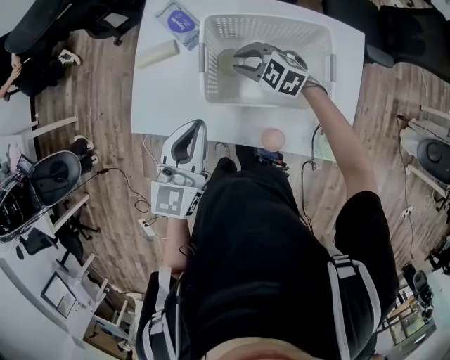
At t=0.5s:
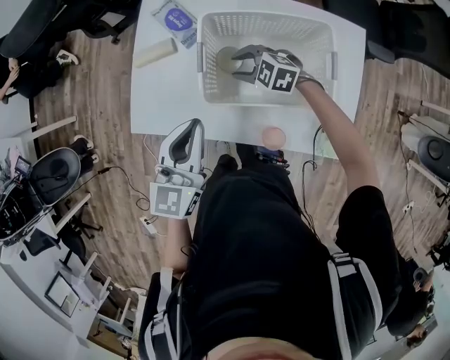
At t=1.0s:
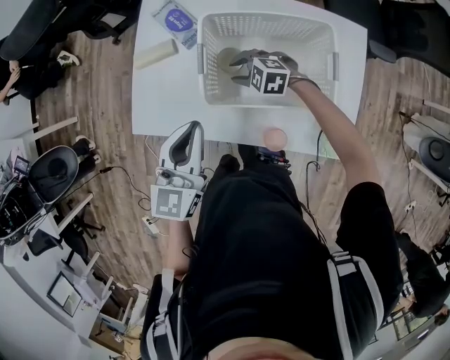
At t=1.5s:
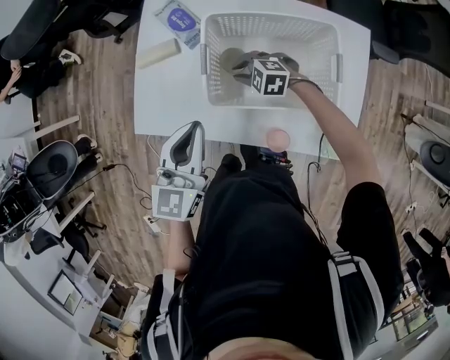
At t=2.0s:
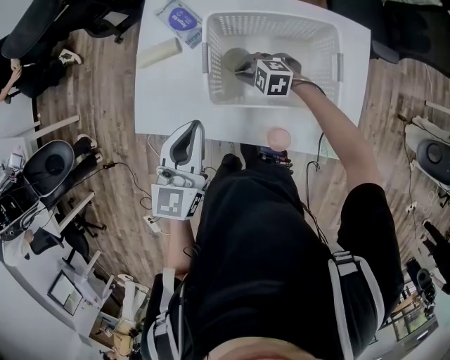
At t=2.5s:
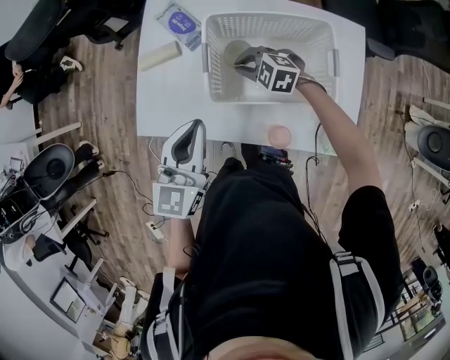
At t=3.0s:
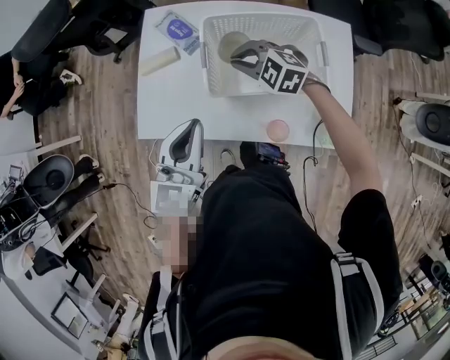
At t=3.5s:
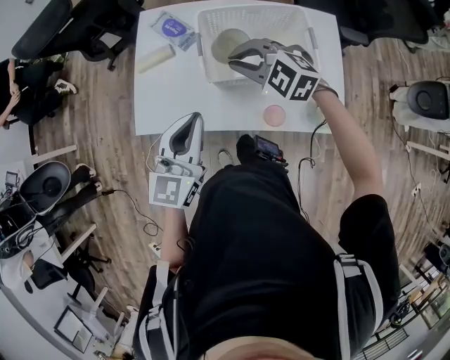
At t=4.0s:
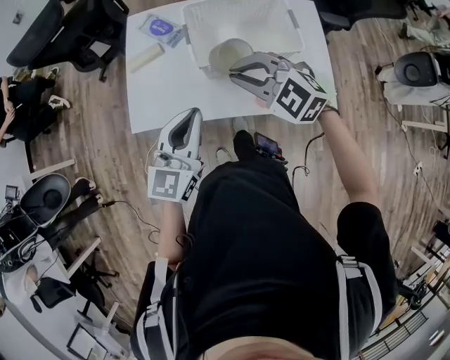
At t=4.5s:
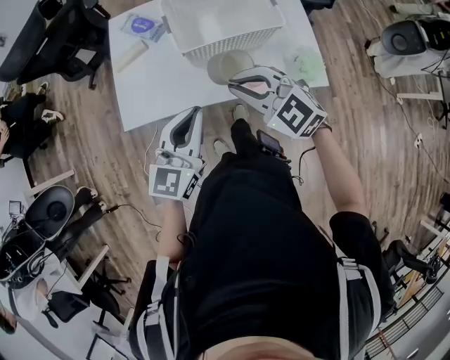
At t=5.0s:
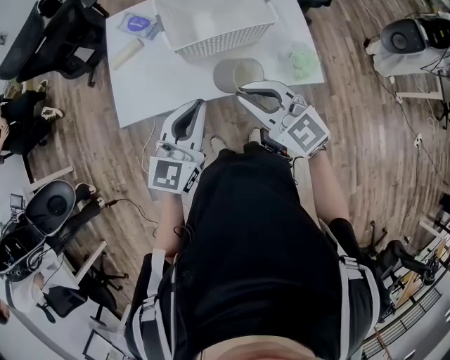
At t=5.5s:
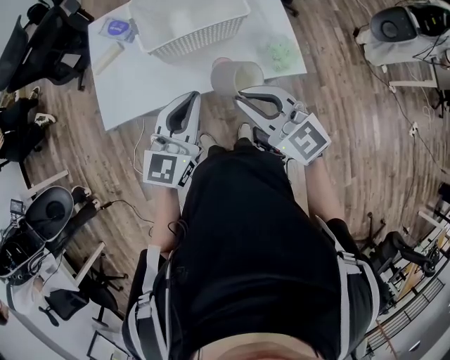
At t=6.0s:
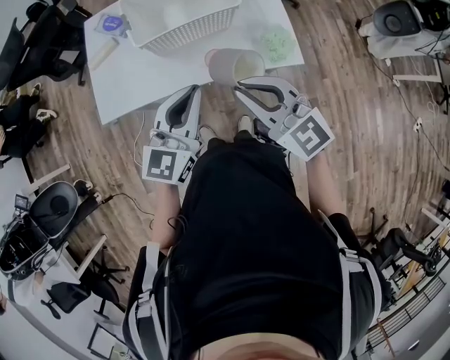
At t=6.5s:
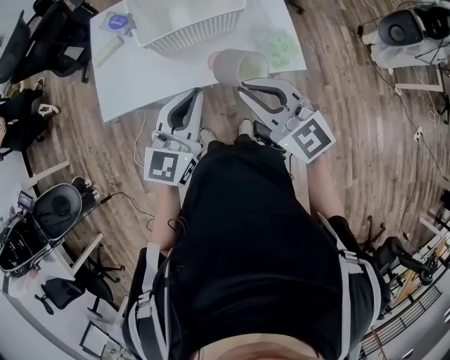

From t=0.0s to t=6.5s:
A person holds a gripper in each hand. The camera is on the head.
From t=0.0s to t=2.0s: The right gripper is displaced downward by roughly 10 cm.
From t=2.0s to t=4.5s: The right gripper shifts by roughly 35 cm, and turns by some 40 degrees. The left gripper shifts by some 20 cm, and turns by about 30 degrees.
From t=4.5s to t=6.5s: The right gripper shifts some 15 cm to the right and backward, and swivels roughly 30 degrees. The left gripper shifts roughly 15 cm to the right.

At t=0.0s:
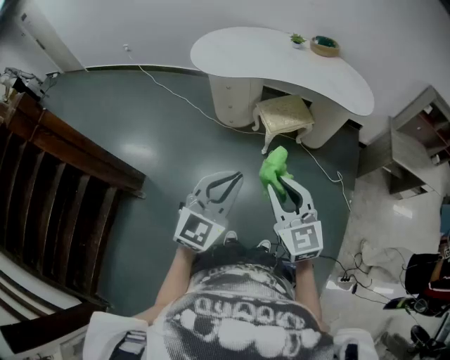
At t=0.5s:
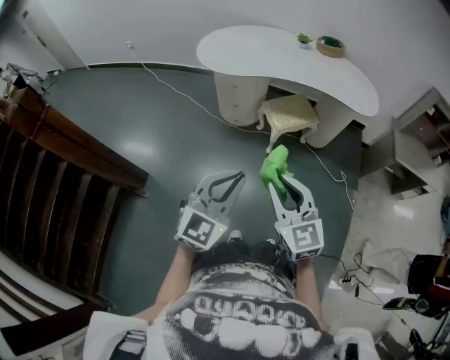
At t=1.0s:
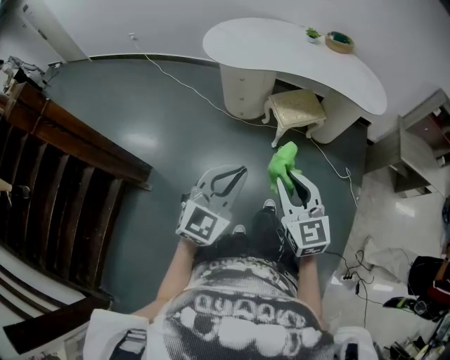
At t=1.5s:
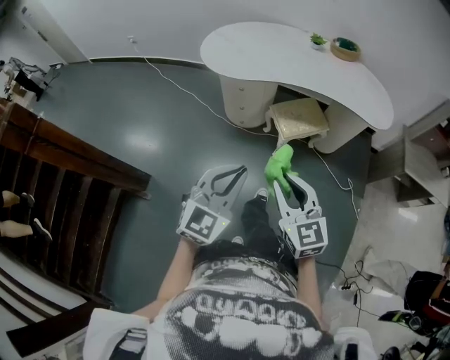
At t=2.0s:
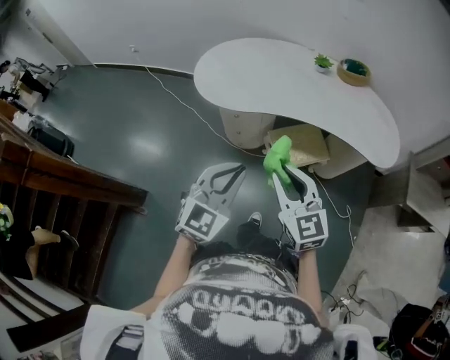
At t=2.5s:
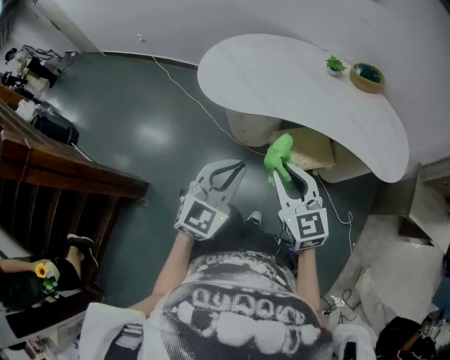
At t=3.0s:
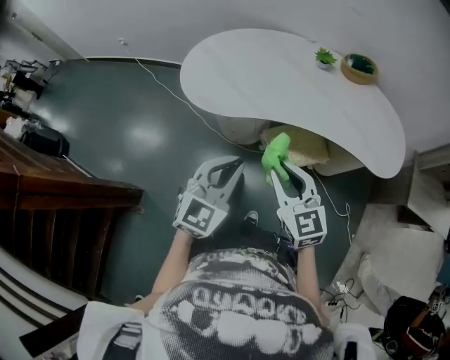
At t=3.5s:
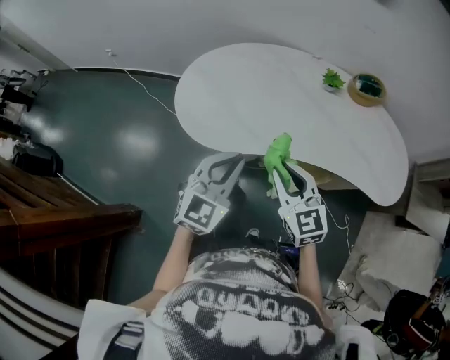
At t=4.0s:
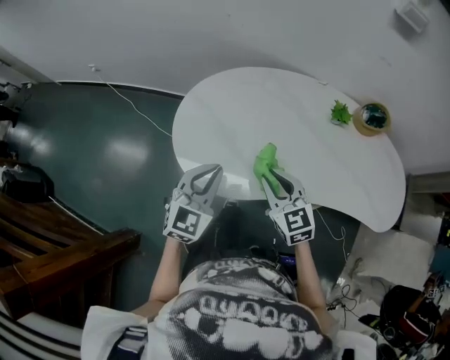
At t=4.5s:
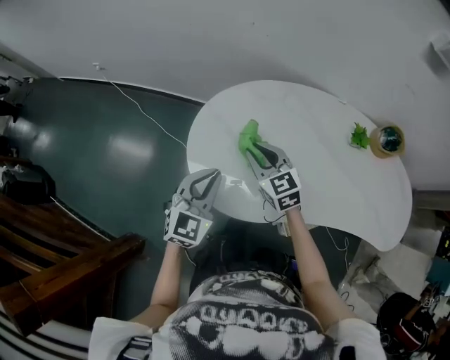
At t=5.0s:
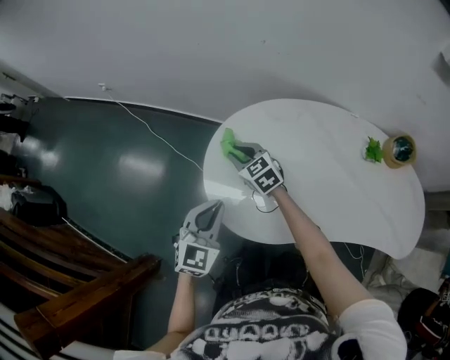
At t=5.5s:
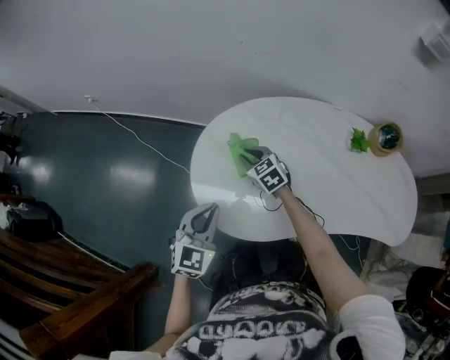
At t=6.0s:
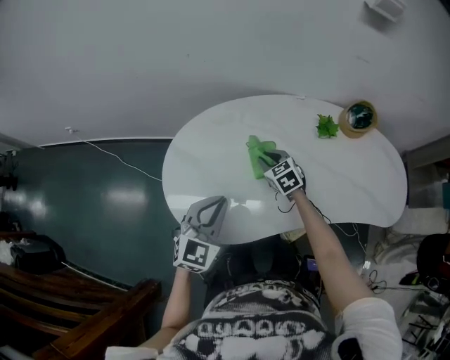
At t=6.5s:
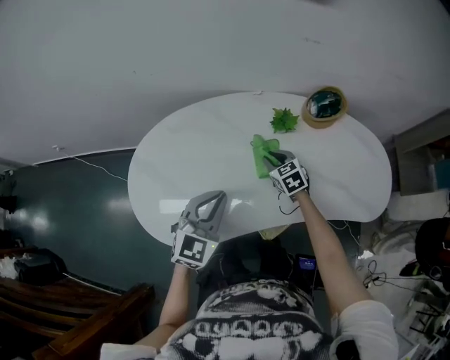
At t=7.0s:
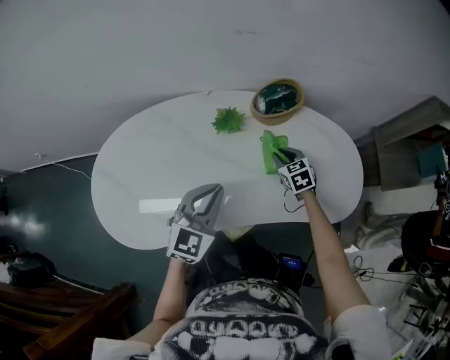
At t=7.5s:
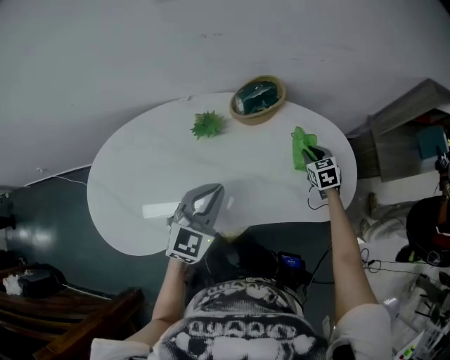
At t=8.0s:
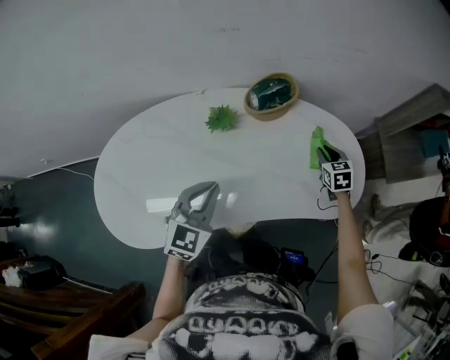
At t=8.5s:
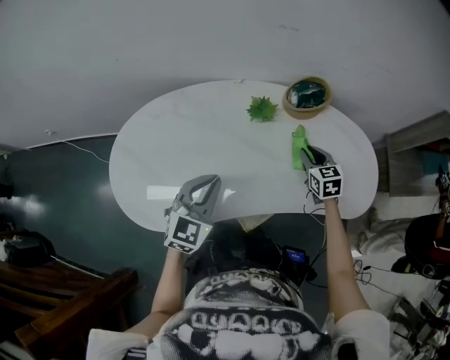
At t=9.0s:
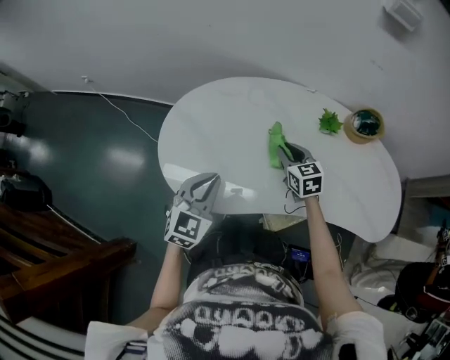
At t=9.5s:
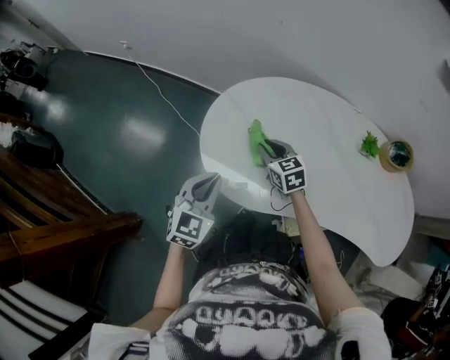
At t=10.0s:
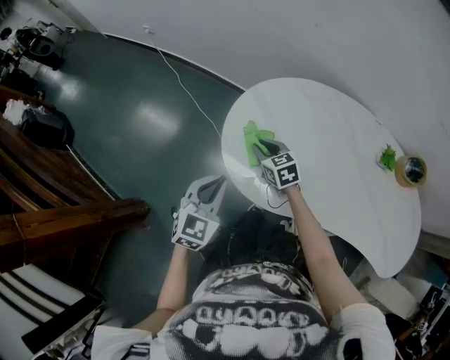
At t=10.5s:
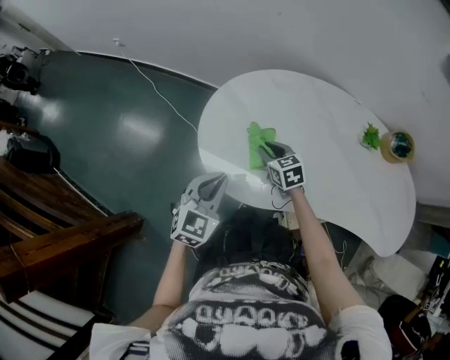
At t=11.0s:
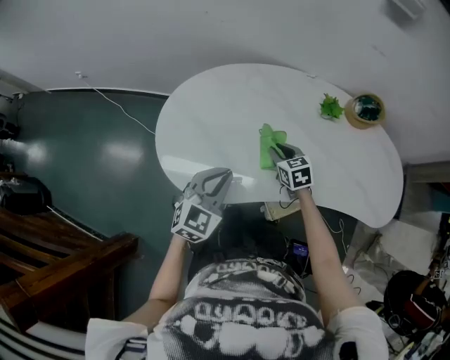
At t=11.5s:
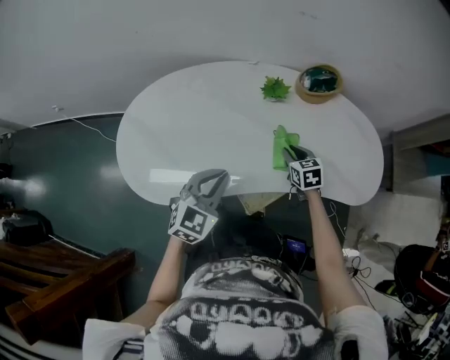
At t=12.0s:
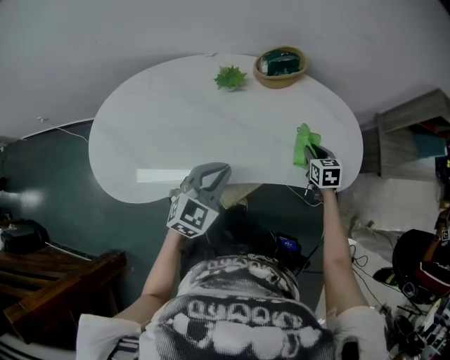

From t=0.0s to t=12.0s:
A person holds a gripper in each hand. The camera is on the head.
From t=0.0s to t=2.0s: Both grippers travel together forward, about 30 cm.
From t=2.0s to t=4.0s: The two grippers travel together, forward, some 40 cm.
From t=4.0s to t=6.0s: The right gripper shifts approximately 25 cm forward and downward, travels to the left and back again, approximately 25 cm each way, and swivels approximately 20 degrees. Meanwhile the left gripper travels forward by approximately 10 cm, and moves about 10 cm to the left and comes back.
From t=6.0s to t=8.0s: The right gripper moves to the right, roughly 60 cm, and changes its angle by some 30 degrees. Meanwhile the left gripper shifts some 35 cm to the right.
From t=8.0s to t=10.0s: The pair of grippers is taken approximately 70 cm. The left gripper swivels about 40 degrees, while the right gripper swivels some 60 degrees.
From t=10.0s to t=12.0s: Both grippers are carried approximately 60 cm. The left gripper swivels some 40 degrees, while the right gripper rotates approximately 50 degrees.

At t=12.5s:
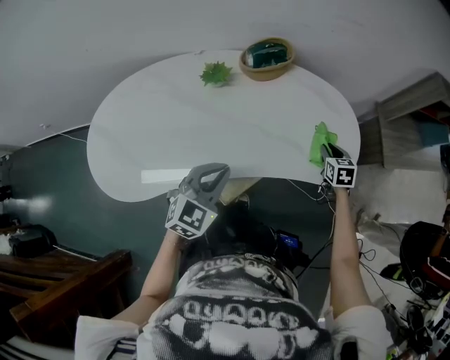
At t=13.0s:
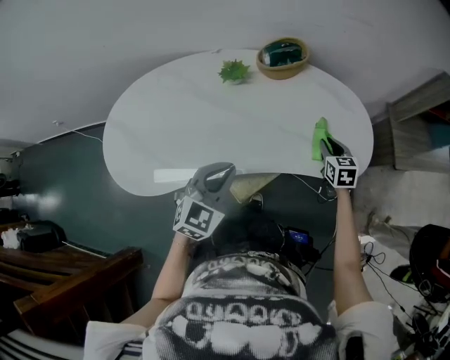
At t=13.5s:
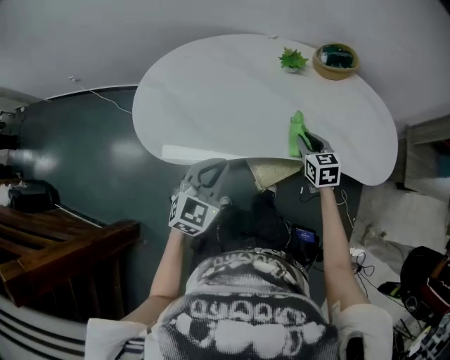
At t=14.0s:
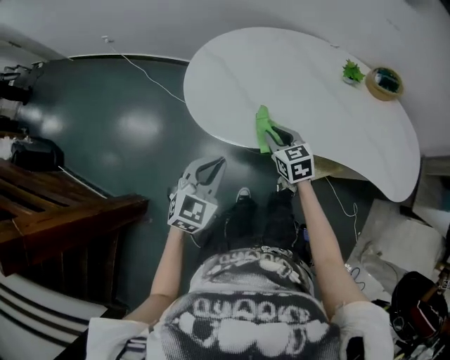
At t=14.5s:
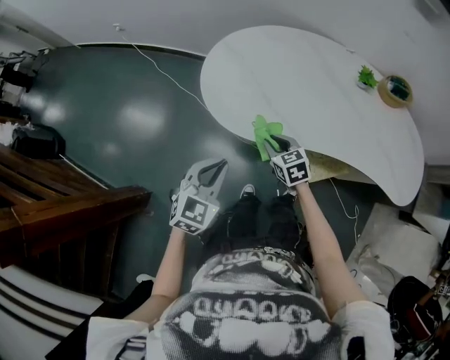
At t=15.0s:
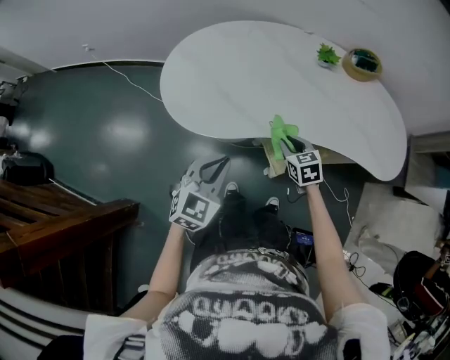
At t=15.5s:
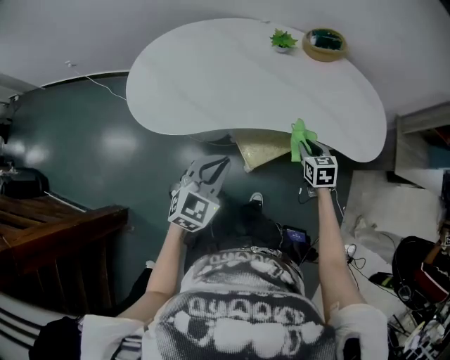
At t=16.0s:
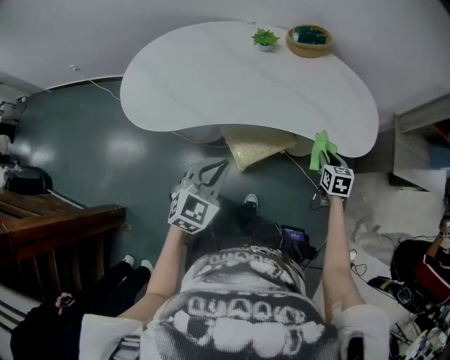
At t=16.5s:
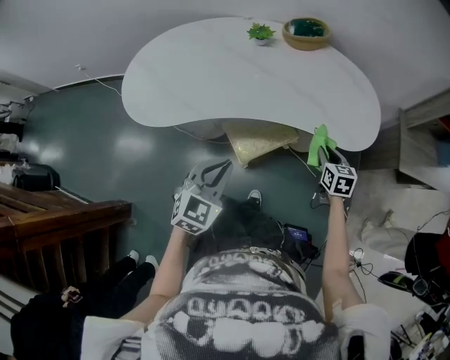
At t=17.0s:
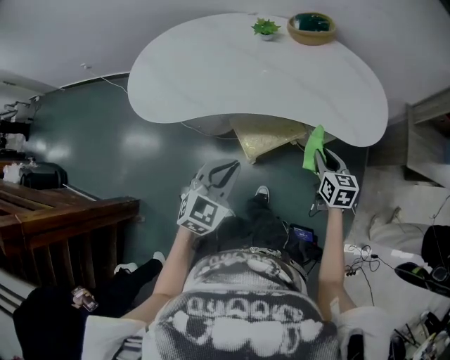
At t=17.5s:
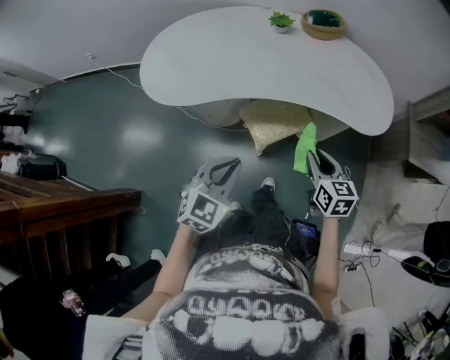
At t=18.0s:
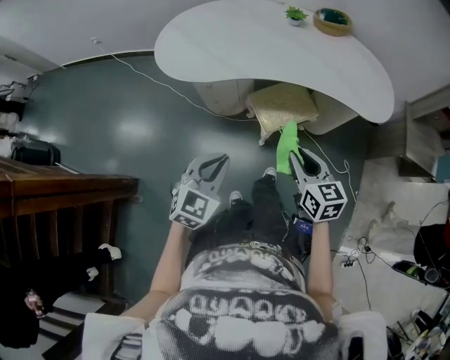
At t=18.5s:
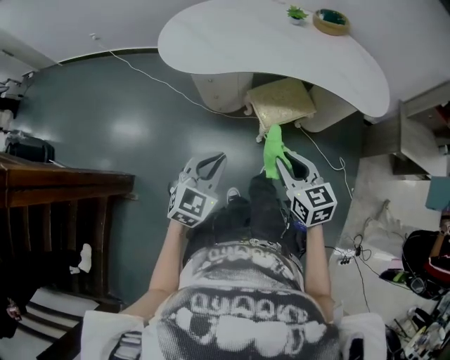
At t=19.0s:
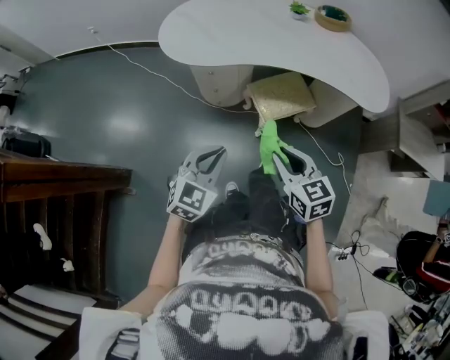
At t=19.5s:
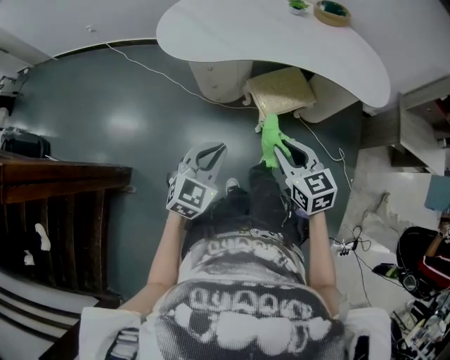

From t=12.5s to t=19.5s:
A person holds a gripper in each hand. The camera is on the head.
From t=12.5s to t=14.5s: Both grippers are carried roughly 60 cm. The left gripper turns by some 30 degrees. Meanwhile the right gripper turns by some 50 degrees.
From t=14.5s to t=16.0s: The right gripper moves roughly 60 cm, and changes its angle by some 40 degrees. Meanwhile the left gripper changes place by approximately 35 cm.
From t=16.0s to t=17.5s: The right gripper travels backward, to the left and upward by about 20 cm, and rotates about 20 degrees; the left gripper heads backward, covering some 10 cm.
From t=17.5s to t=19.5s: The left gripper travels backward and to the left by some 20 cm. Meanwhile the right gripper travels to the left and backward by some 25 cm, and changes its angle by roughly 20 degrees.

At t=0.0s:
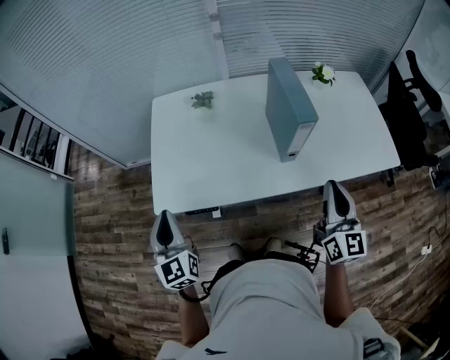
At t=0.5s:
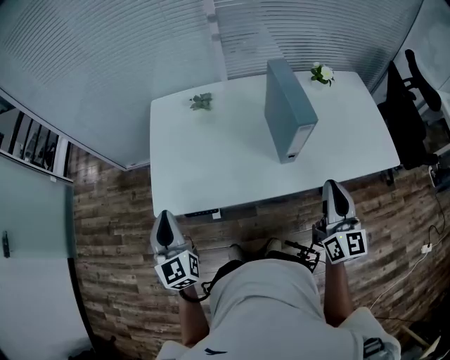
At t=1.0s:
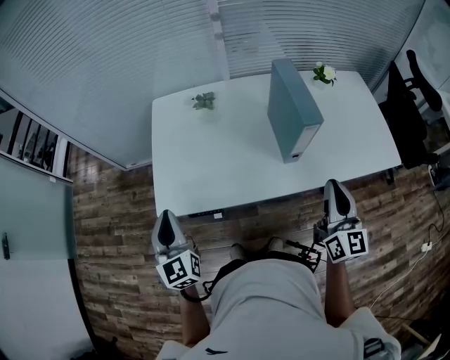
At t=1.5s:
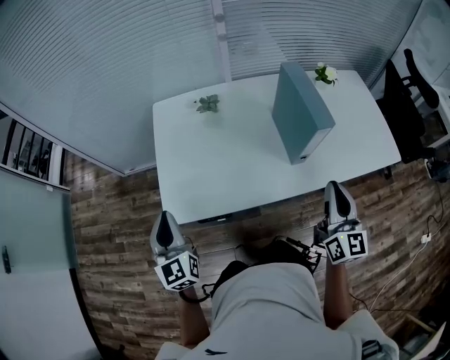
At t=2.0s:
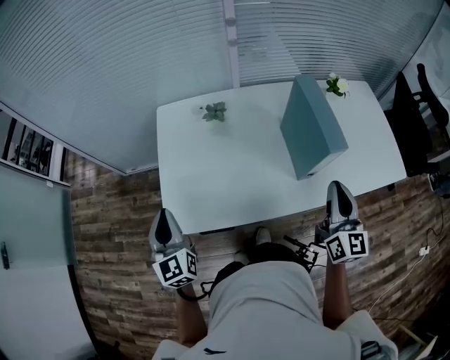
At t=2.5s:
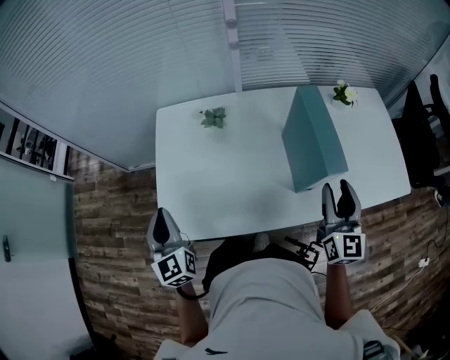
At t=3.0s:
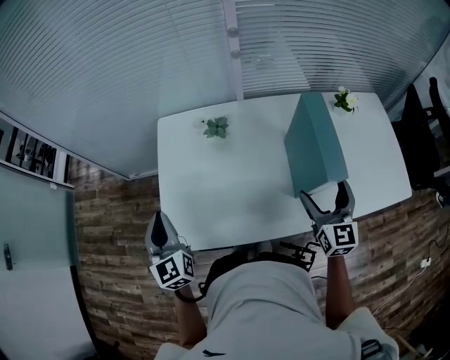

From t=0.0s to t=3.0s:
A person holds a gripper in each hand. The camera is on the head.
From t=0.0s to t=1.5s: The right gripper shifts by about 5 cm, while the left gripper is displaced to the left by roughly 5 cm.
From t=1.5s to t=3.0s: The grippers both shift forward by about 15 cm. The right gripper opens its fingers.
